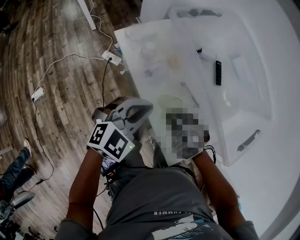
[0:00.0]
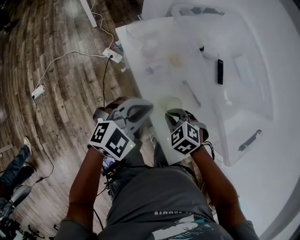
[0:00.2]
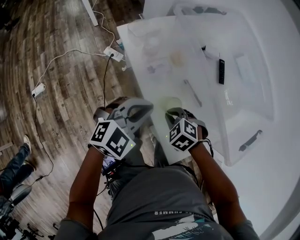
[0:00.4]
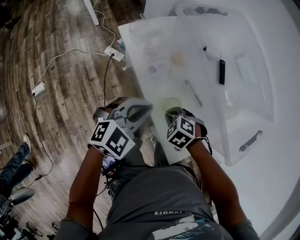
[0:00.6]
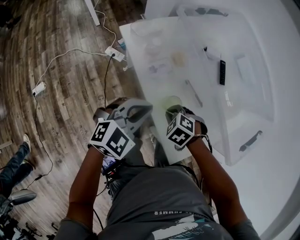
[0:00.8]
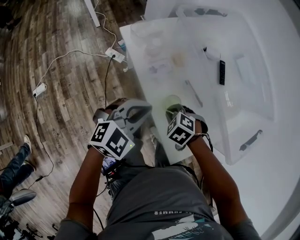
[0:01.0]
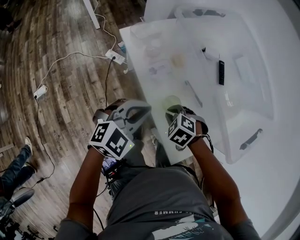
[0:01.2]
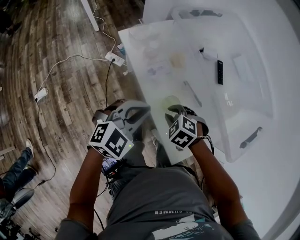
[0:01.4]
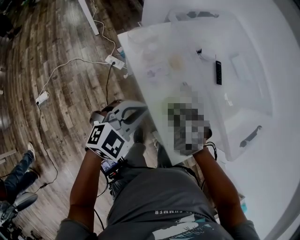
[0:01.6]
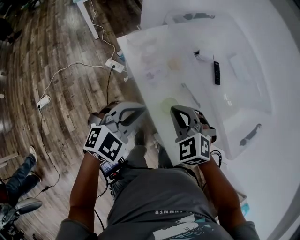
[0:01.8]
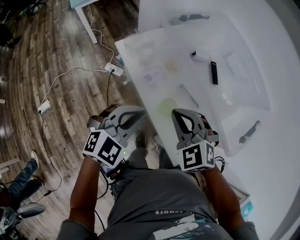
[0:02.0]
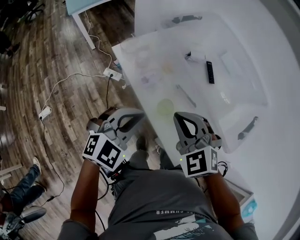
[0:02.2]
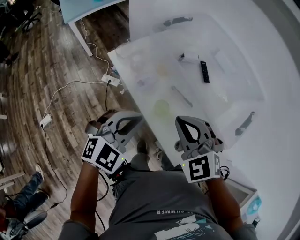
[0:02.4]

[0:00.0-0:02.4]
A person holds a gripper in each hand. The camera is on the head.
0.0 to 1.2 s: The right gripper heads downward, covering roughly 5 cm.
1.2 to 2.4 s: The left gripper heads upward, covering some 10 cm, while the right gripper shifts about 25 cm upward, and tips its fingers upward by some 40 degrees.

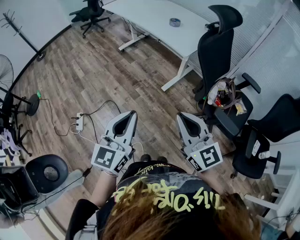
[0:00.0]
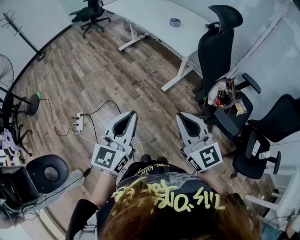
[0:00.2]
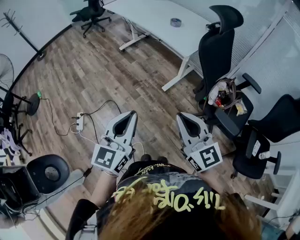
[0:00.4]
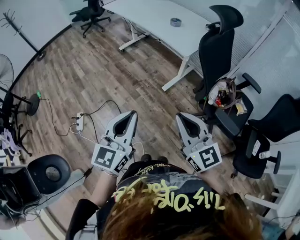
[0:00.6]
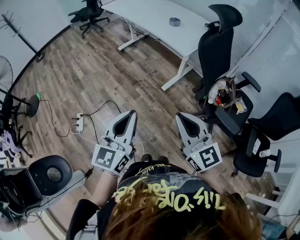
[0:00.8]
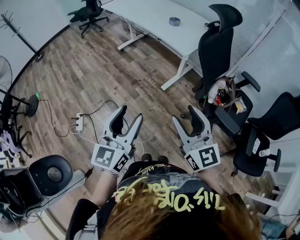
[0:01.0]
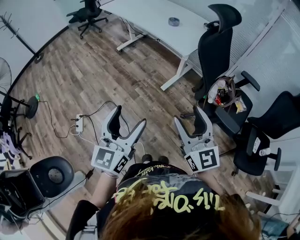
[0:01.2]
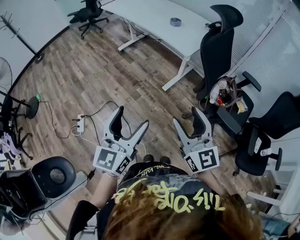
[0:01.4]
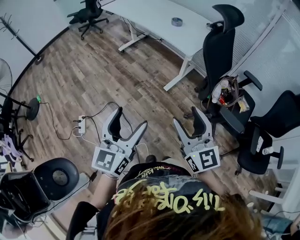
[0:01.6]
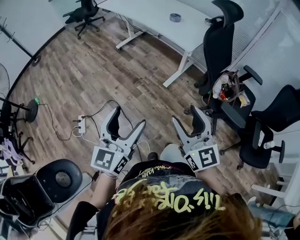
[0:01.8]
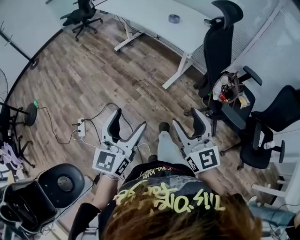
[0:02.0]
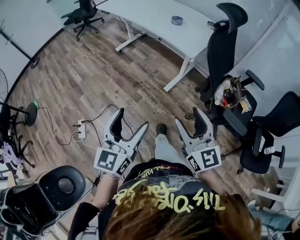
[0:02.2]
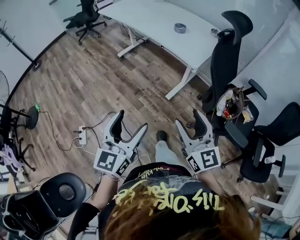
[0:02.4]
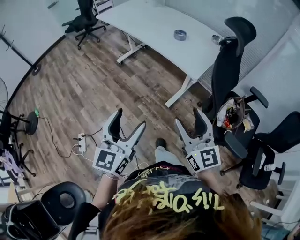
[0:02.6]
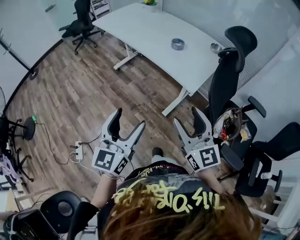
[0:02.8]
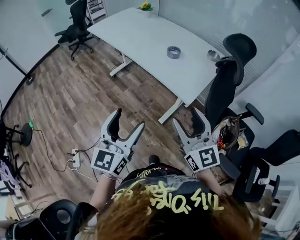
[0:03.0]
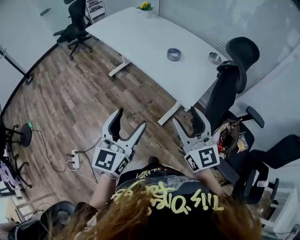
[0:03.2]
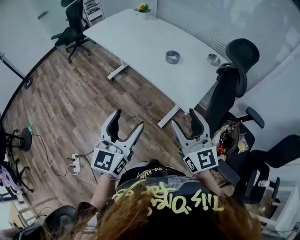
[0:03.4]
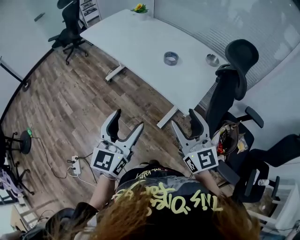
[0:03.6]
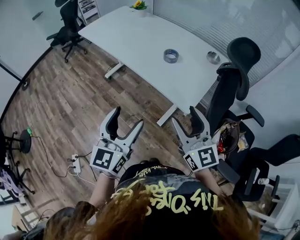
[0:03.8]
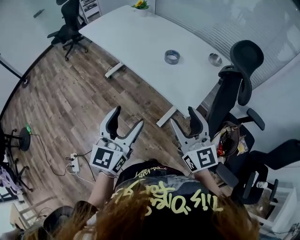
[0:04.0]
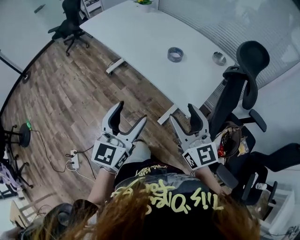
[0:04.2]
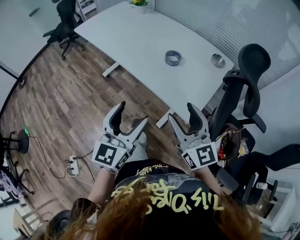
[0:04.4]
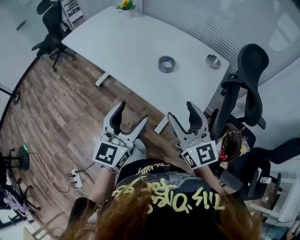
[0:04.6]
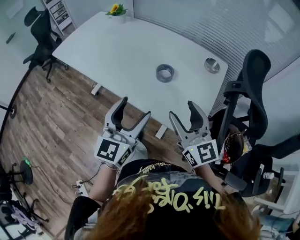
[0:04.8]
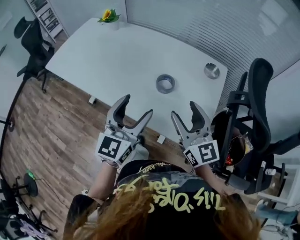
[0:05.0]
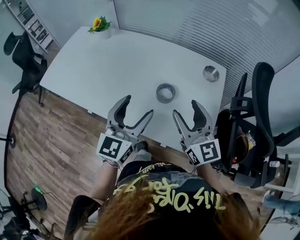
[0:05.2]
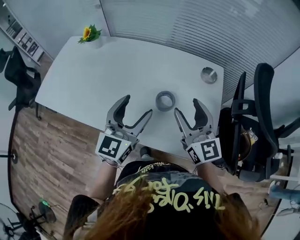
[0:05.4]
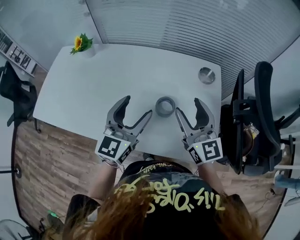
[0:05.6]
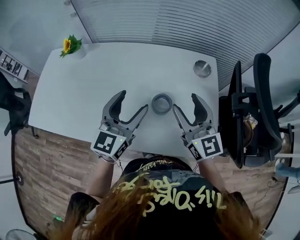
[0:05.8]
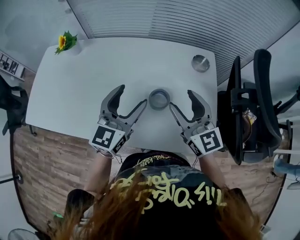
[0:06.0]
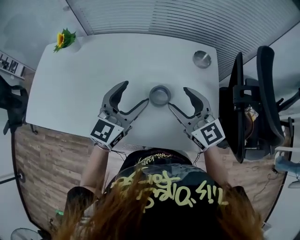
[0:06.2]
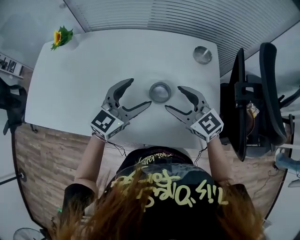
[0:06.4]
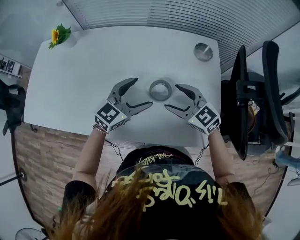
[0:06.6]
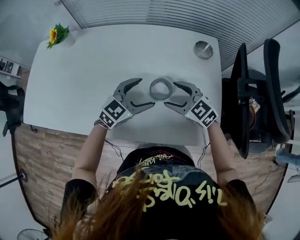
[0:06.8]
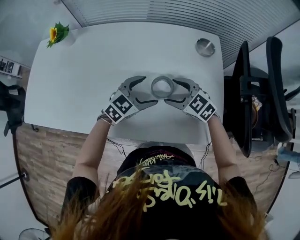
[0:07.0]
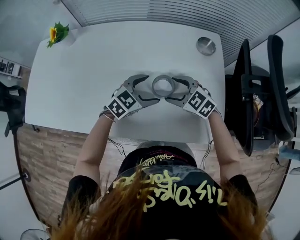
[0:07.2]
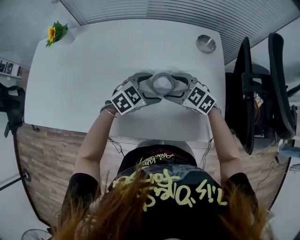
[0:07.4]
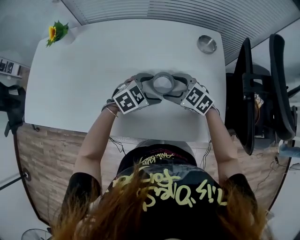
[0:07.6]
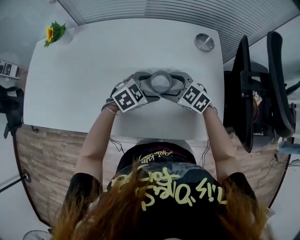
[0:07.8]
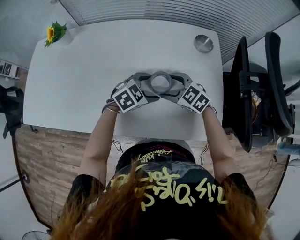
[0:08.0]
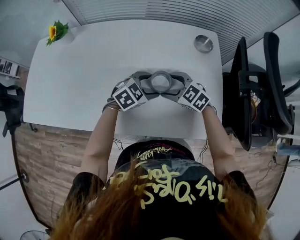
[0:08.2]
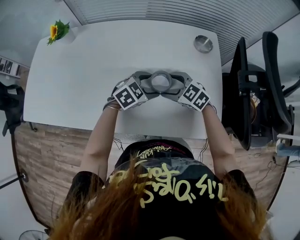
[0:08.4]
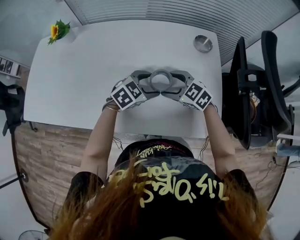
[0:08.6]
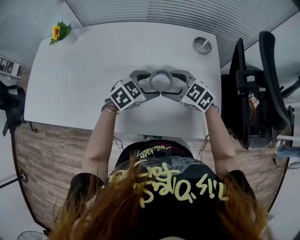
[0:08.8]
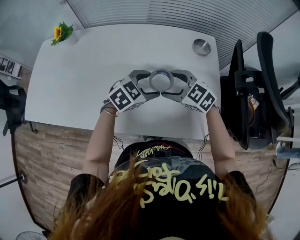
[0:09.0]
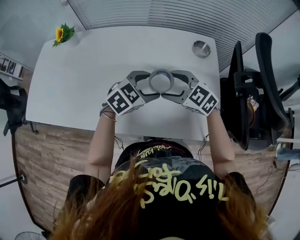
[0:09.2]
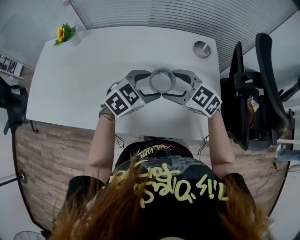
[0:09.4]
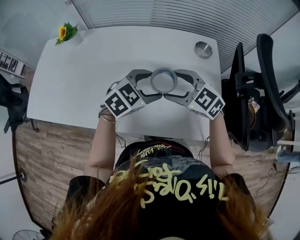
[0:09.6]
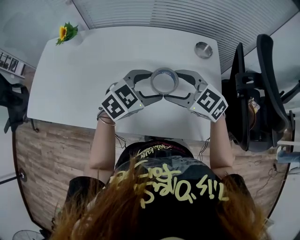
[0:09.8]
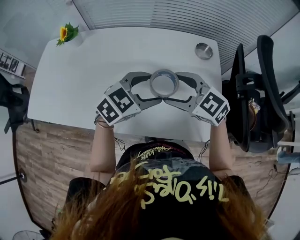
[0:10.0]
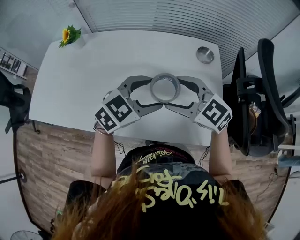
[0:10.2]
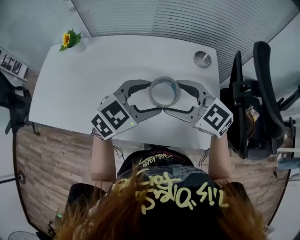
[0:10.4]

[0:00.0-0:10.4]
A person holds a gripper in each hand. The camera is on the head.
0.0 to 1.4 s: The left gripper opens up. Meanwhile the right gripper opens.
1.4 to 3.0 s: The grippers both shift forward by roughly 30 cm.
3.0 to 4.4 s: The grippers both shift forward by roughly 15 cm.
4.4 to 6.0 s: The right gripper moves some 30 cm, and rotates approximately 30 degrees. The left gripper ends up some 40 cm from where it was, and rotates approximately 40 degrees.
6.0 to 7.4 s: The grippers both shift downward by about 20 cm. The right gripper angles its fingers downward, by approximately 40 degrees. Meanwhile the left gripper points its fingers about 40 degrees further downward.
7.4 to 9.0 s: The two grippers go some 5 cm upward.
9.0 to 10.4 s: The right gripper shifts approximately 15 cm upward and backward, while the left gripper moves upward, roughly 15 cm.

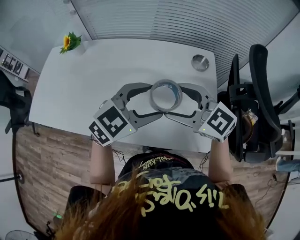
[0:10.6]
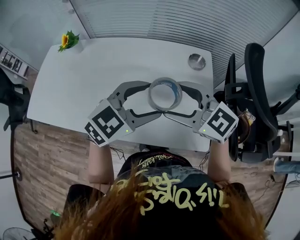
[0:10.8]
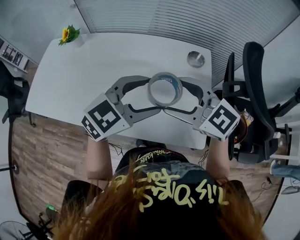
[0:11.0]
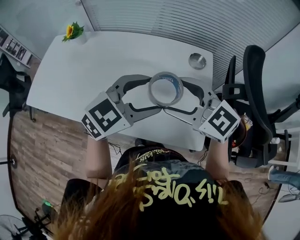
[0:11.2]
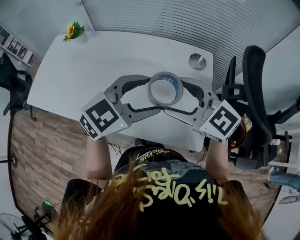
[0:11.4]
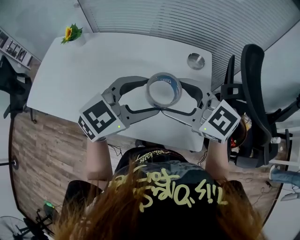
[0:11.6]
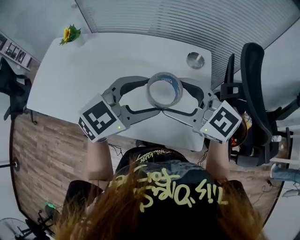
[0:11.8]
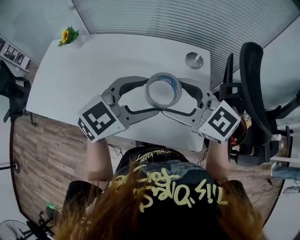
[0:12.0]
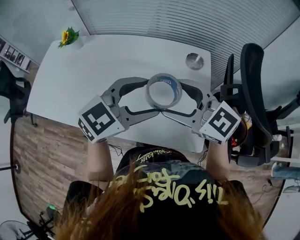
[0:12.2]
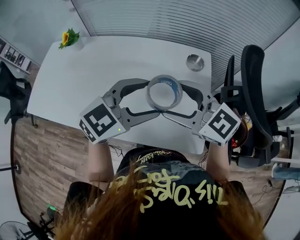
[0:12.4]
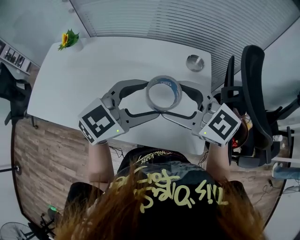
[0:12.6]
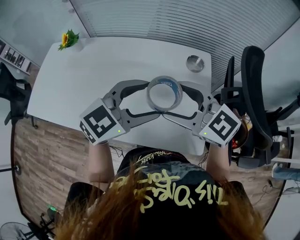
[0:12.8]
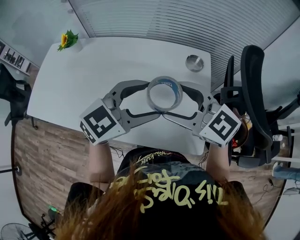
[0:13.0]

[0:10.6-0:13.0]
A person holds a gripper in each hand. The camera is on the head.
10.6 to 11.8 s: The right gripper ends up approximately 5 cm from where it was. Meanwhile the left gripper moves some 5 cm.
11.8 to 13.0 s: Neither gripper changes place.

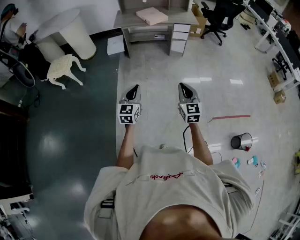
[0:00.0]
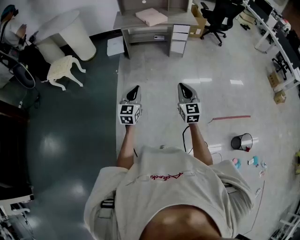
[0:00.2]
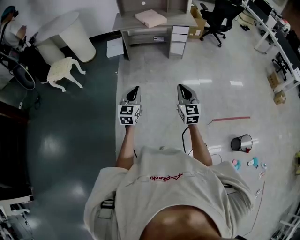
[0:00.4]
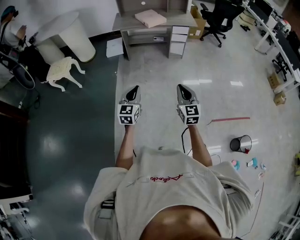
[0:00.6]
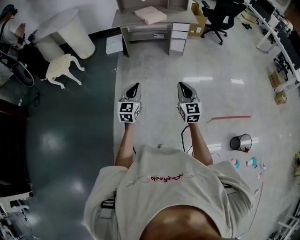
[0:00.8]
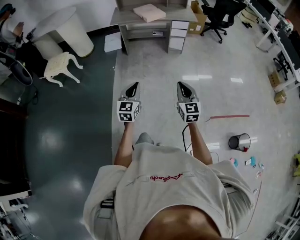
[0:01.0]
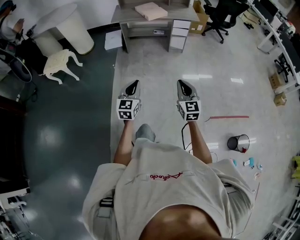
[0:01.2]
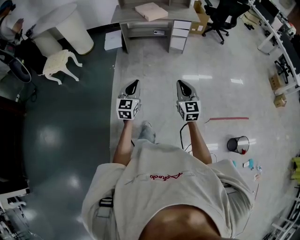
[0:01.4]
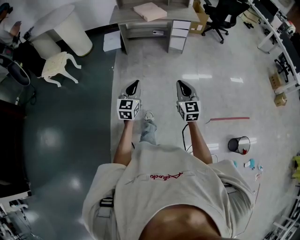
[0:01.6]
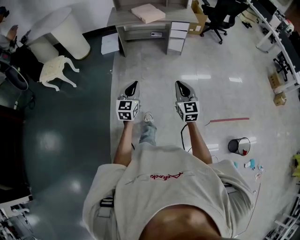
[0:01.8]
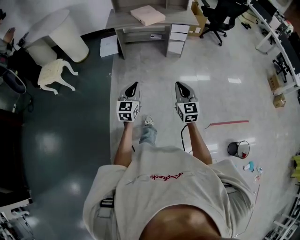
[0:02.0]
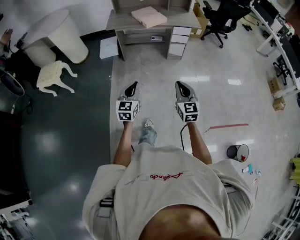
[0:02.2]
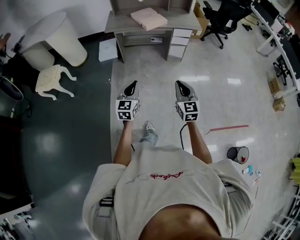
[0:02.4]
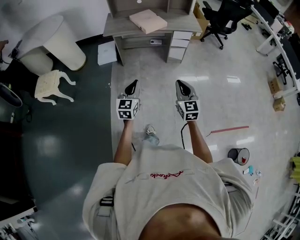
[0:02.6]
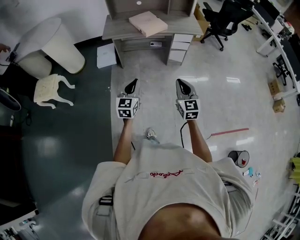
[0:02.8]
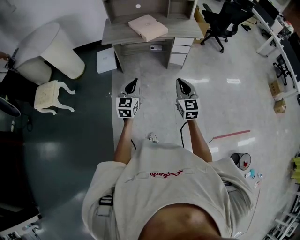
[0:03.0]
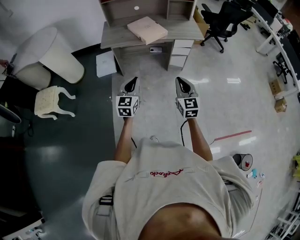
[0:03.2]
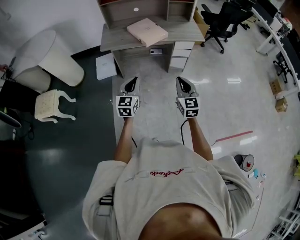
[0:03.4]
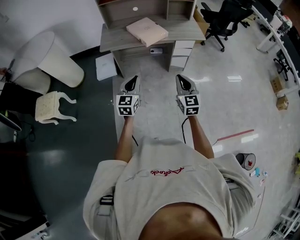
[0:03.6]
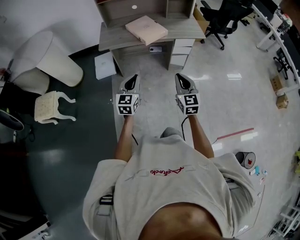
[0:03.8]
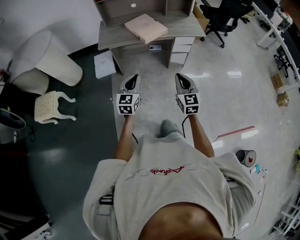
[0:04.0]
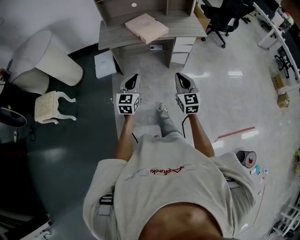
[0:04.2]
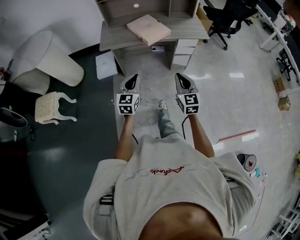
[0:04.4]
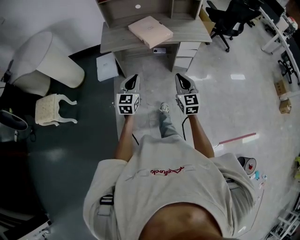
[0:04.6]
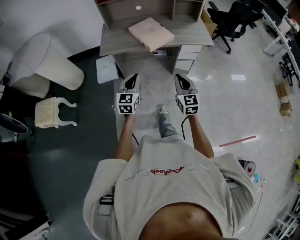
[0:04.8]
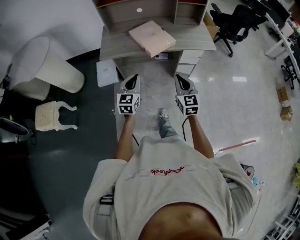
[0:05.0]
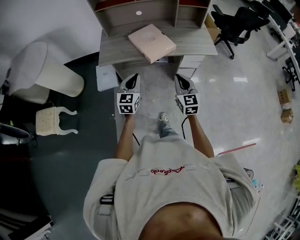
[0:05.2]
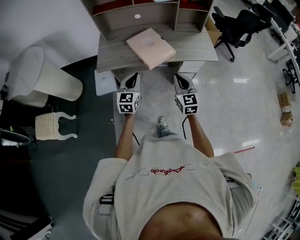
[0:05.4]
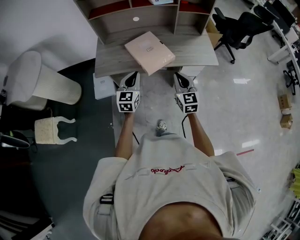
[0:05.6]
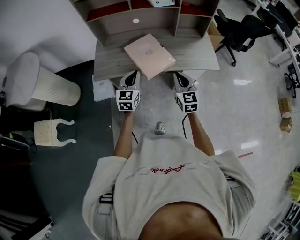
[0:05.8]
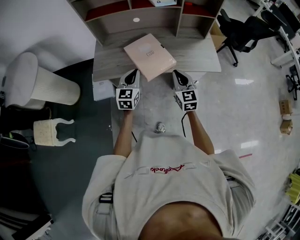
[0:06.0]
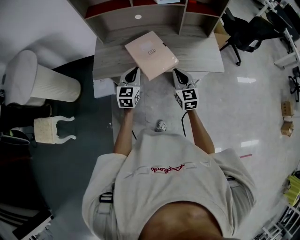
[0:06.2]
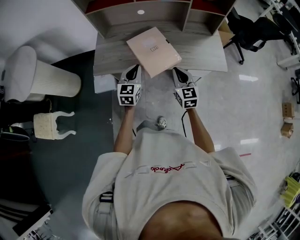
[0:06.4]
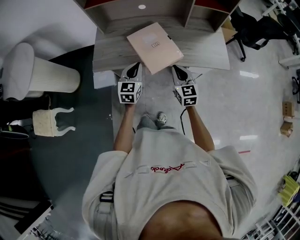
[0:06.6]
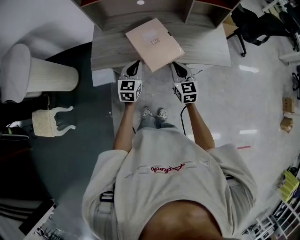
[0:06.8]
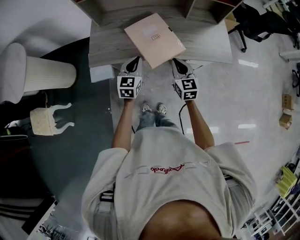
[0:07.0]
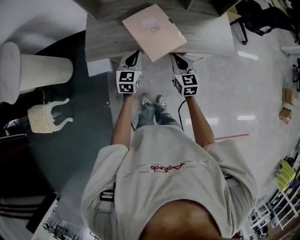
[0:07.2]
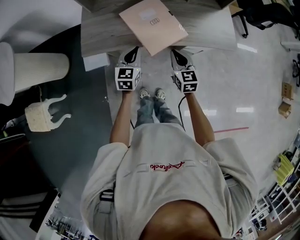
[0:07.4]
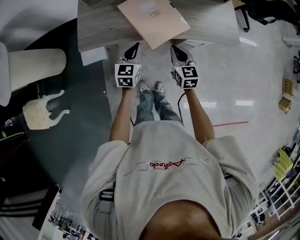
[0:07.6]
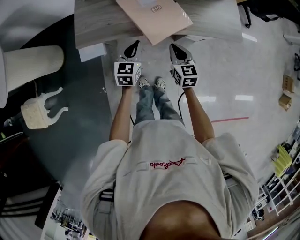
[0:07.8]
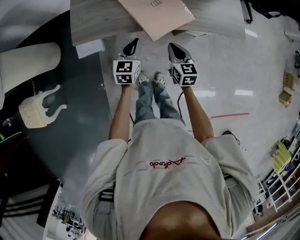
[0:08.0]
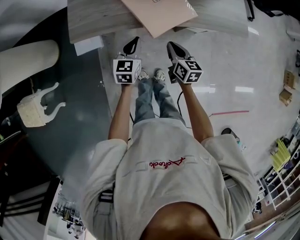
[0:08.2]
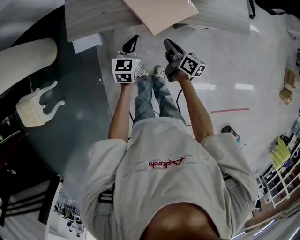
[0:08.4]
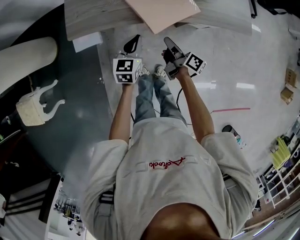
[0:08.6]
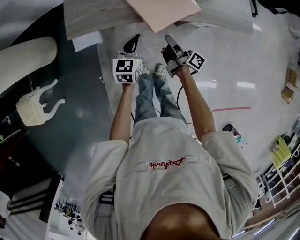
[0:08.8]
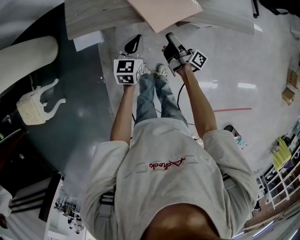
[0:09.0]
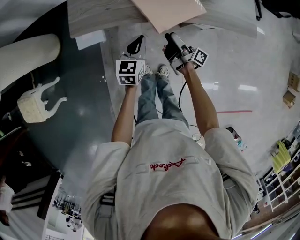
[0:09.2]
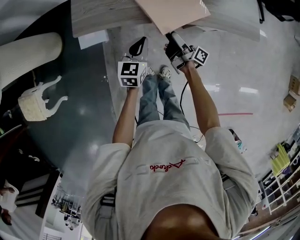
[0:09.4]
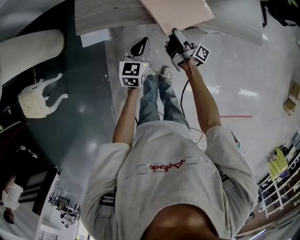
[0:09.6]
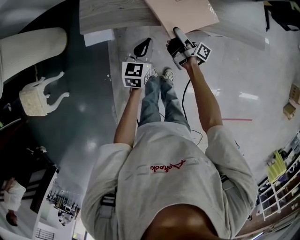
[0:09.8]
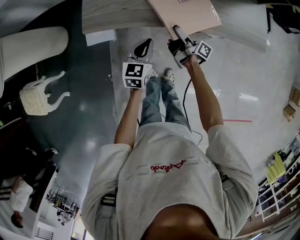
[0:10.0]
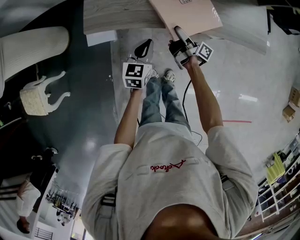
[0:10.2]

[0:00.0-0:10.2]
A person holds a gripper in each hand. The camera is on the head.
0.0 to 1.4 s: The left gripper moves some 5 cm. The right gripper moves about 5 cm.
1.4 to 3.0 s: Both grippers travel together forward, roughly 35 cm.
3.0 to 4.4 s: The grippers both shift forward by roughly 10 cm.
4.4 to 5.8 s: The grippers both shift forward by approximately 35 cm.
5.8 to 7.2 s: The grippers both shift downward and forward by approximately 15 cm.
7.2 to 8.8 s: The two grippers go about 15 cm downward. The right gripper rotates around the line of its fingers by approximately 80 degrees, clockwise from behind.
8.8 to 10.2 s: The right gripper is displaced forward by roughly 10 cm, and opens.
